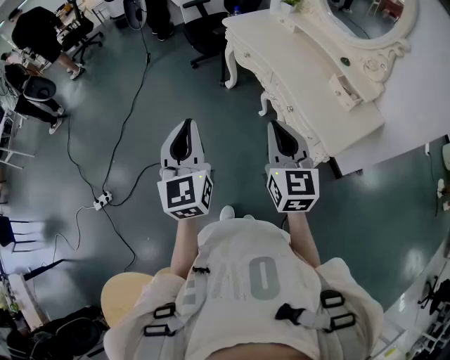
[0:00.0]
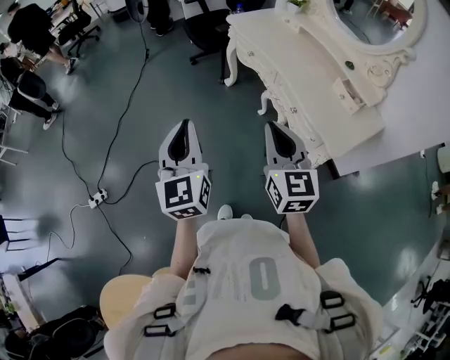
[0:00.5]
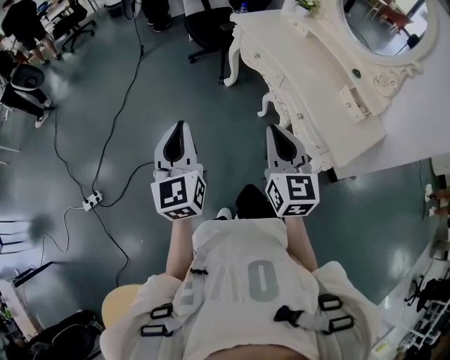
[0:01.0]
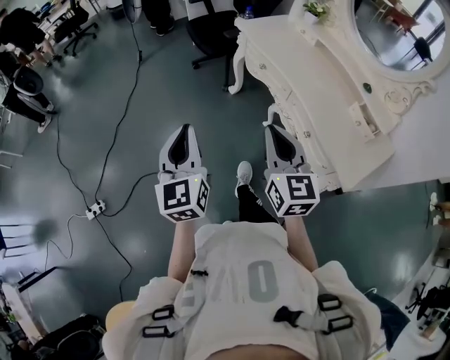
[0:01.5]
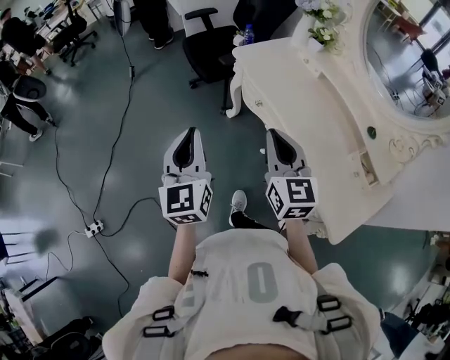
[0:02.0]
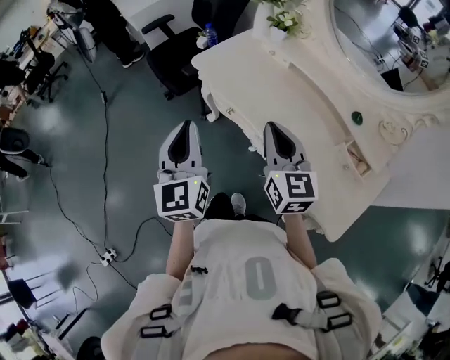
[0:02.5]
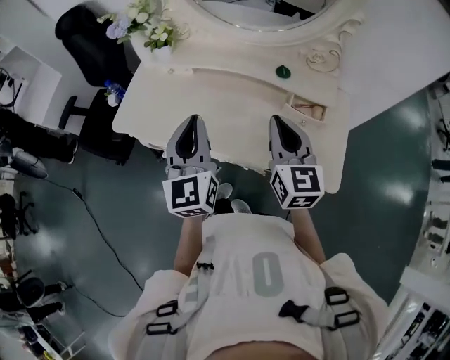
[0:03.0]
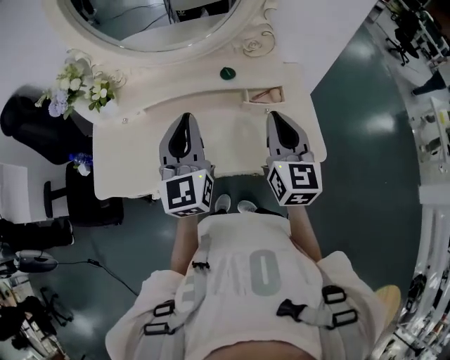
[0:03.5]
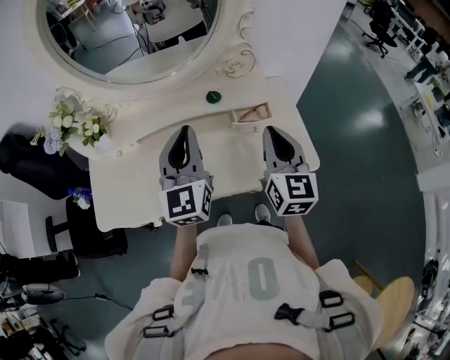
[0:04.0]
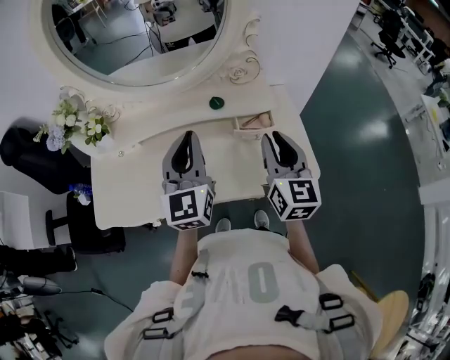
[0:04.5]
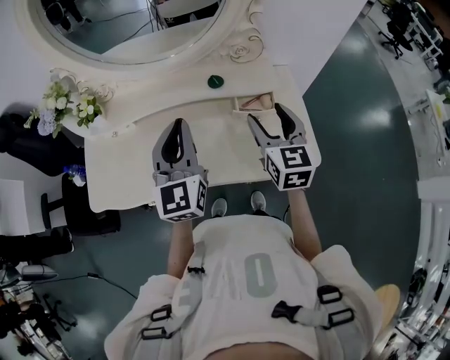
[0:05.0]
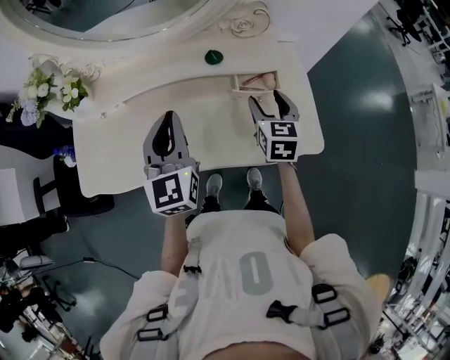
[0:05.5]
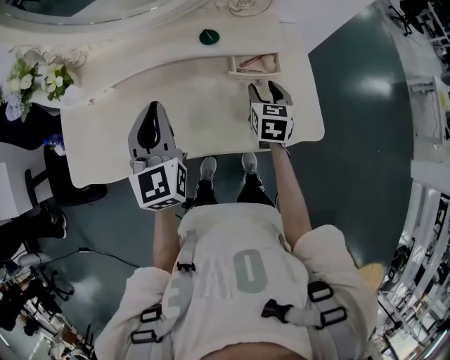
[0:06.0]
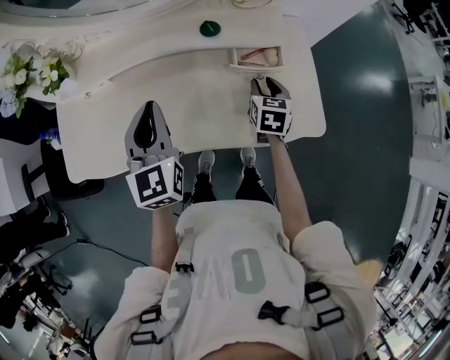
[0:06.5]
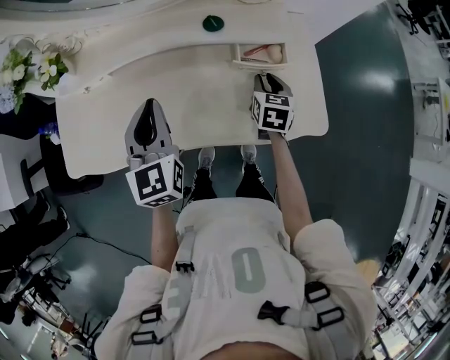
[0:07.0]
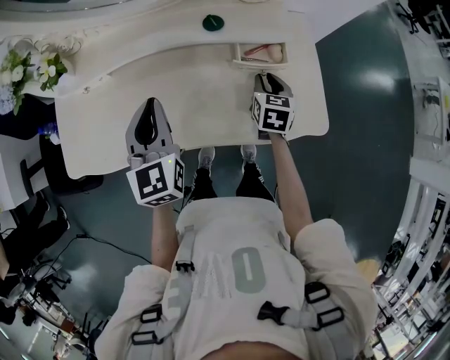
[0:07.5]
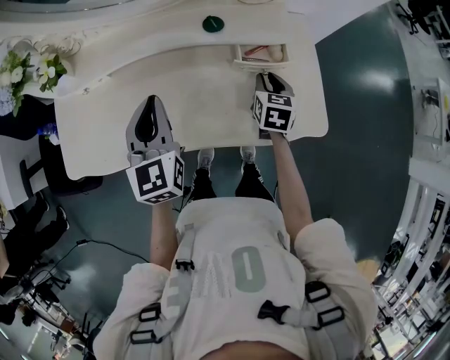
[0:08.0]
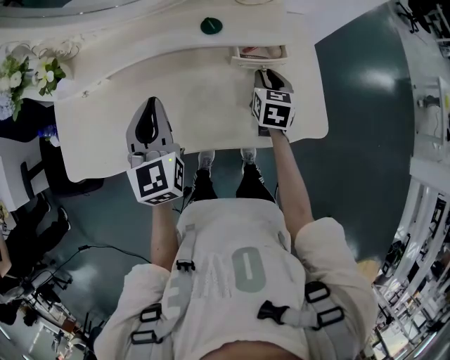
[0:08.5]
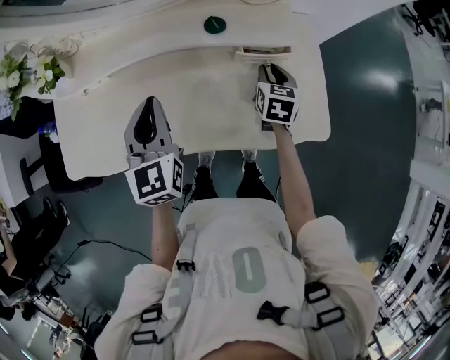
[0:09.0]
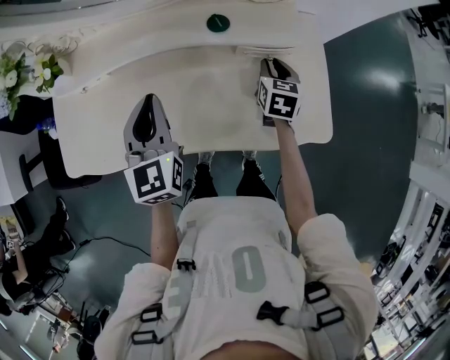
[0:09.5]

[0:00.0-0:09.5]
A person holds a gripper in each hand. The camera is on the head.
0:00.0 to 0:02.0: The grippers both shift forward by some 35 cm.
0:02.0 to 0:04.0: The left gripper moves some 50 cm, and rotates roughly 80 degrees, while the right gripper shifts by roughly 35 cm, and swivels roughly 80 degrees.
0:04.0 to 0:05.5: The left gripper moves downward, roughly 5 cm. The right gripper travels downward and forward by approximately 20 cm, turns by roughly 20 degrees, and opens its fingers.
0:05.5 to 0:07.5: The right gripper heads downward, covering some 10 cm, and closes up, while the left gripper moves downward, about 5 cm.
0:07.5 to 0:09.5: The right gripper shifts about 5 cm forward.

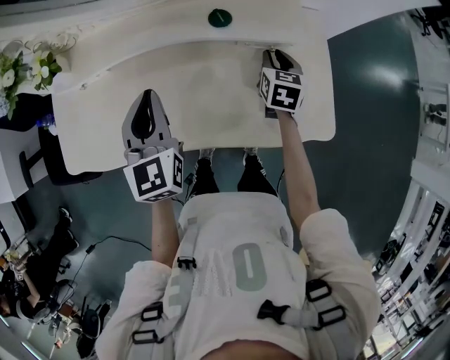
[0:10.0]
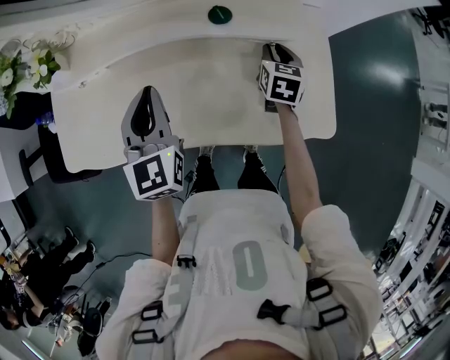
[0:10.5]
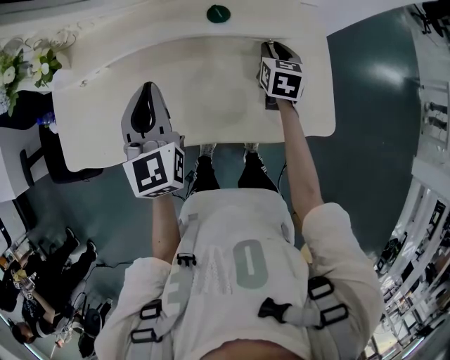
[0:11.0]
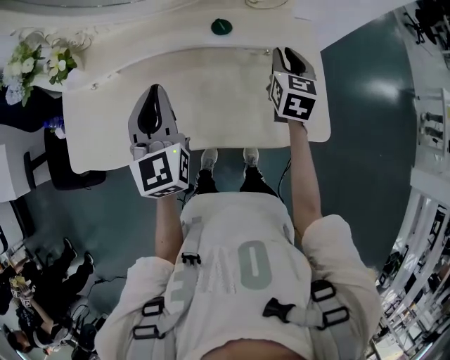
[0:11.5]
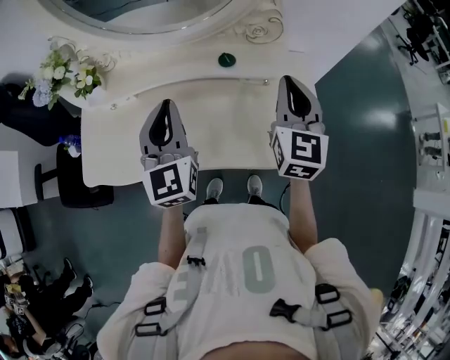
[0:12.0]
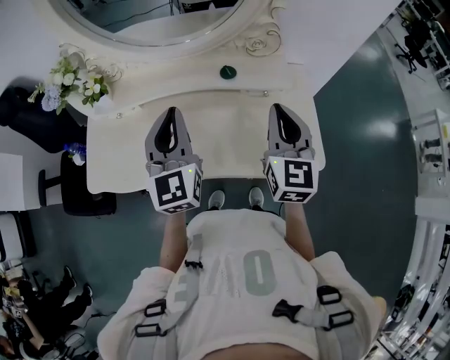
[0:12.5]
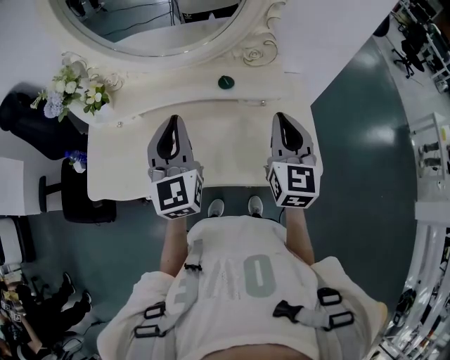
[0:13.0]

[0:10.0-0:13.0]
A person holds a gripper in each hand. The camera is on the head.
0:10.0 to 0:11.5: The right gripper heads upward, covering about 10 cm.
0:11.5 to 0:13.0: The left gripper travels upward by about 10 cm. The right gripper shifts about 20 cm upward and backward, and rotates approximately 20 degrees.

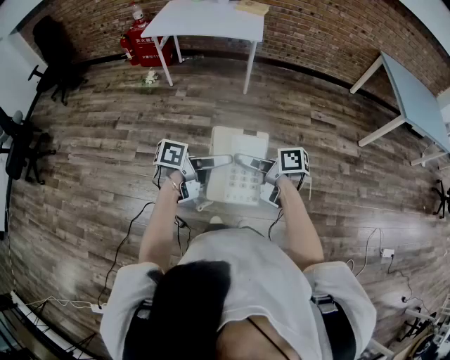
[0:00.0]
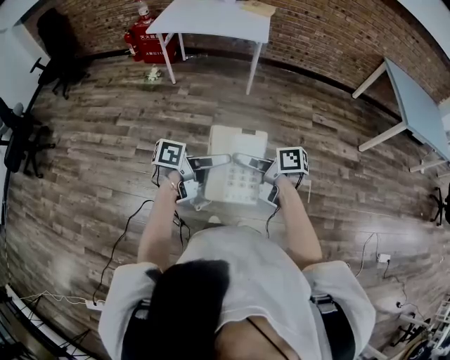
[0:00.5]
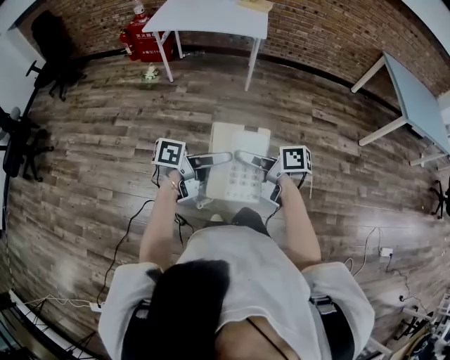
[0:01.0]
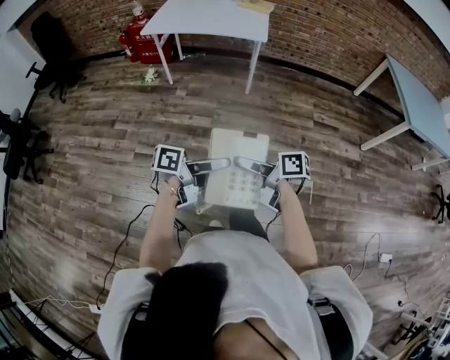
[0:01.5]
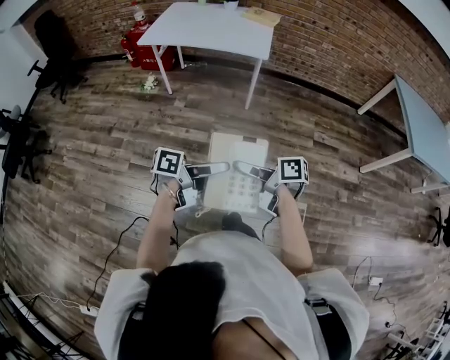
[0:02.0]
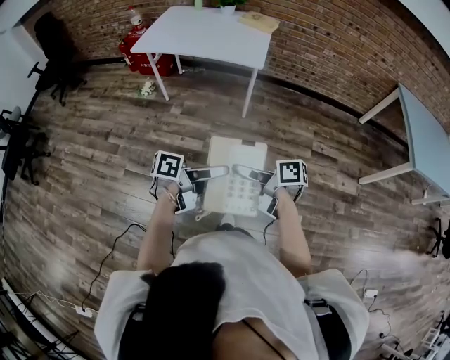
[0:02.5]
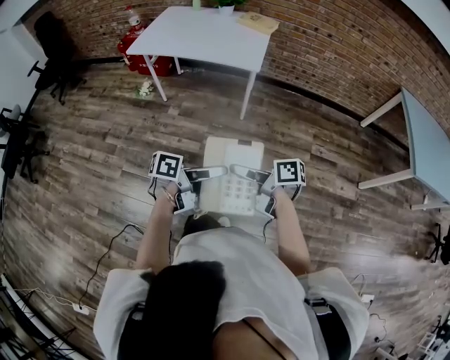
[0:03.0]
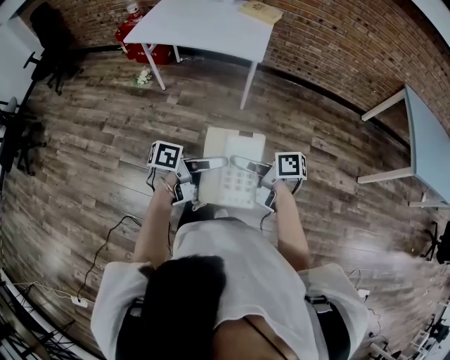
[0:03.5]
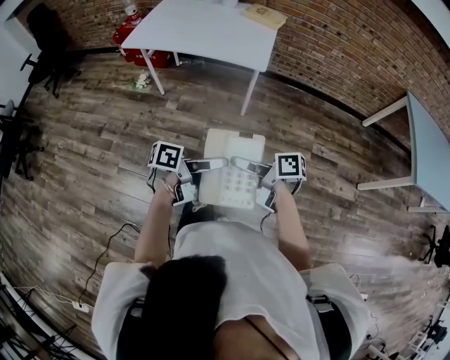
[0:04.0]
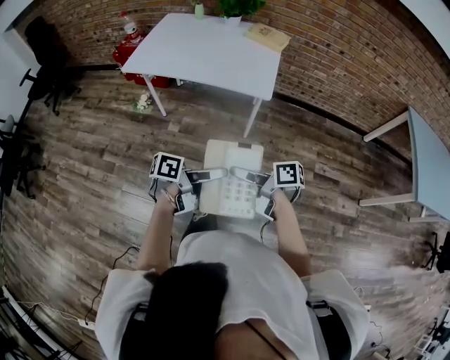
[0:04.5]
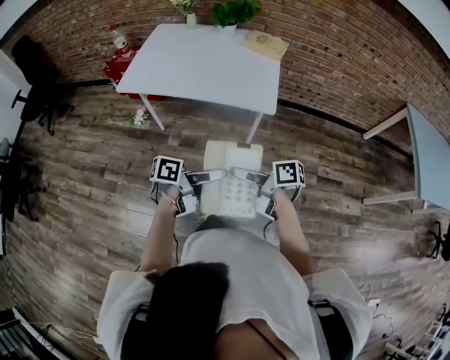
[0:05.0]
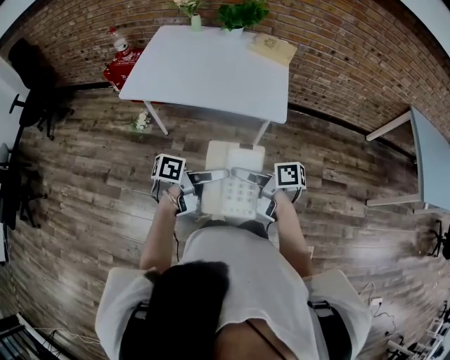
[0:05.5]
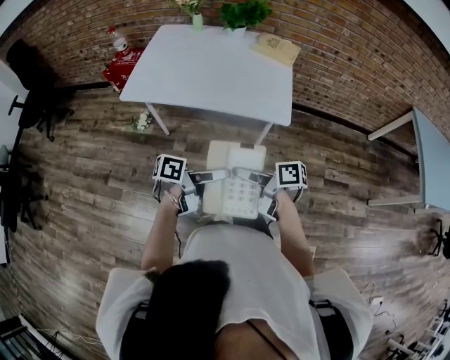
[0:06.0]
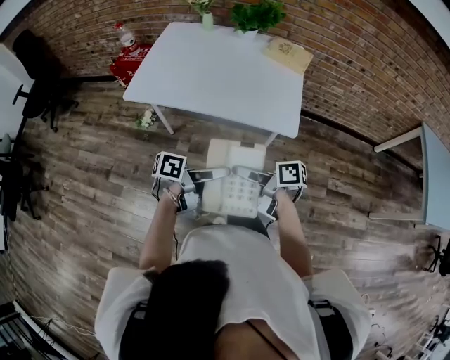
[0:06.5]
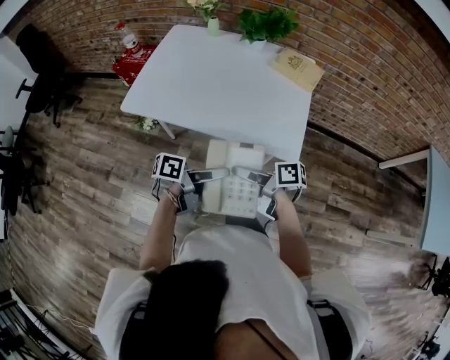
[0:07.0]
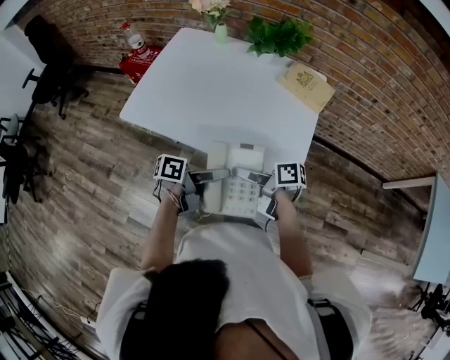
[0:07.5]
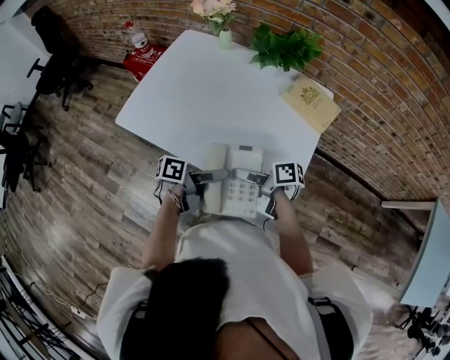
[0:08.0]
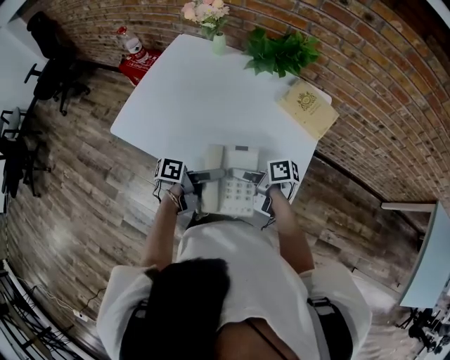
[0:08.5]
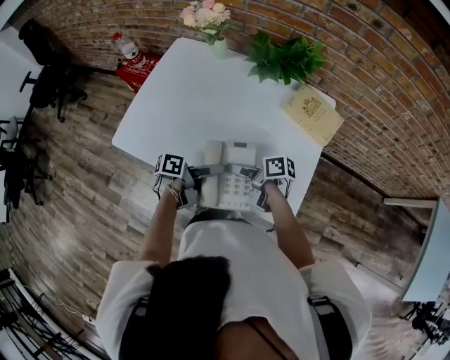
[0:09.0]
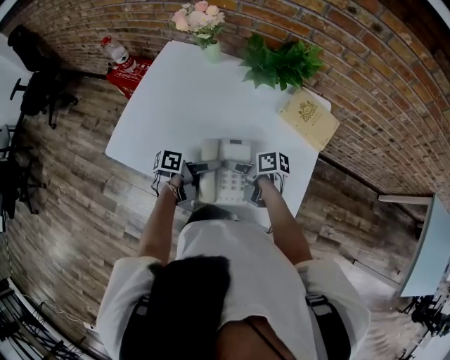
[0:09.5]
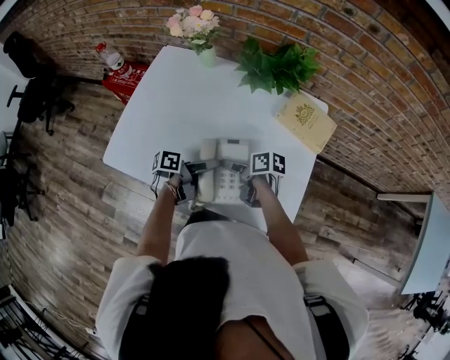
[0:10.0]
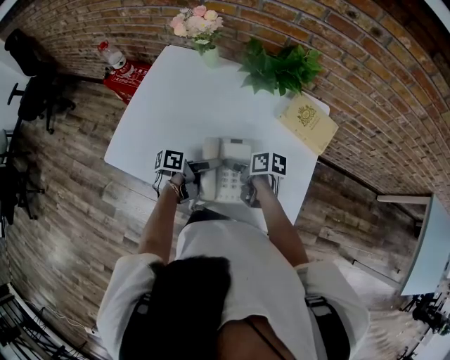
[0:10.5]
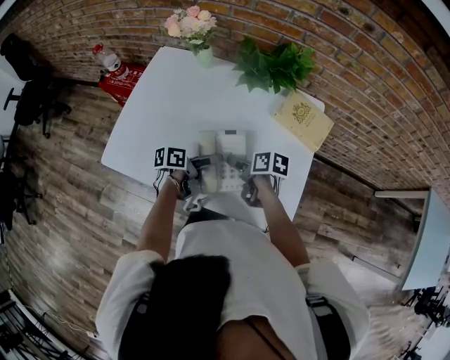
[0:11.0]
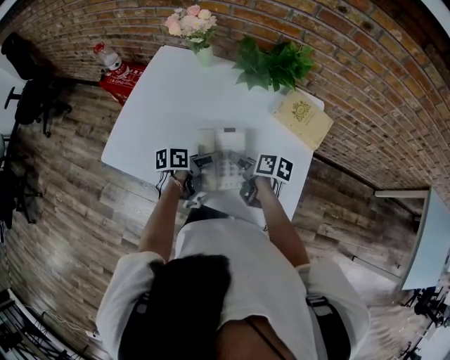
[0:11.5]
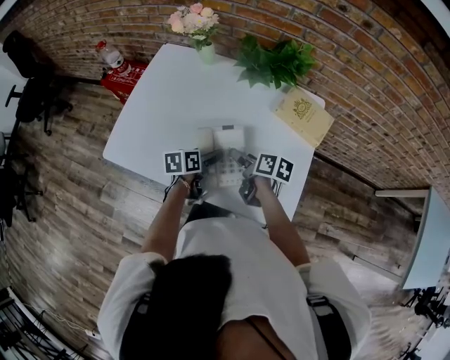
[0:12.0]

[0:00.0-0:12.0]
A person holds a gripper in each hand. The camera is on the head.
0:00.0 to 0:02.0: The left gripper ends up about 15 cm from where it was. Meanwhile the right gripper ends up some 15 cm from where it was.
0:02.0 to 0:04.0: The right gripper shifts by approximately 20 cm; the left gripper moves some 20 cm.
0:04.0 to 0:06.0: The left gripper shifts by some 30 cm. Meanwhile the right gripper ends up some 30 cm from where it was.
0:06.0 to 0:08.0: The right gripper moves roughly 30 cm. Meanwhile the left gripper moves about 30 cm.
0:08.0 to 0:10.0: The left gripper changes place by roughly 15 cm. The right gripper ends up about 15 cm from where it was, and changes its angle by about 20 degrees.
0:10.0 to 0:12.0: The left gripper swivels about 40 degrees, while the right gripper moves about 5 cm.

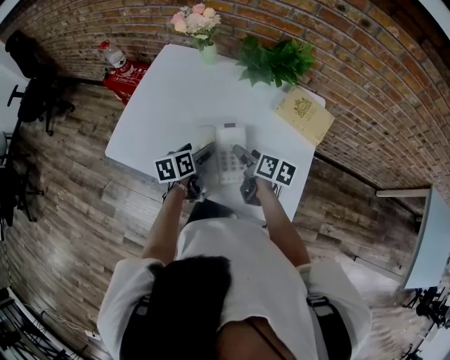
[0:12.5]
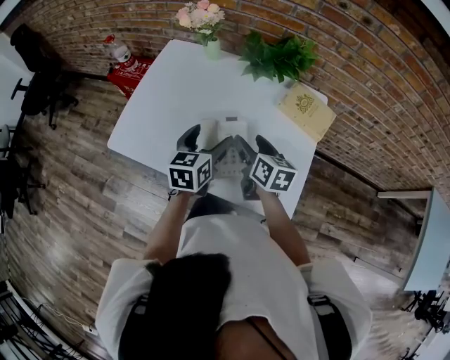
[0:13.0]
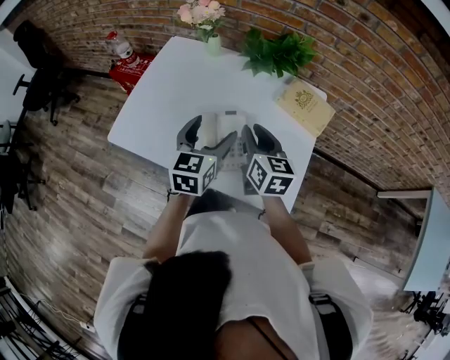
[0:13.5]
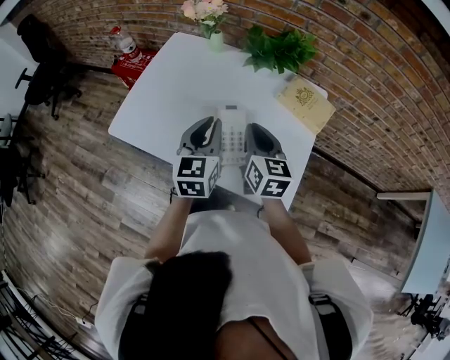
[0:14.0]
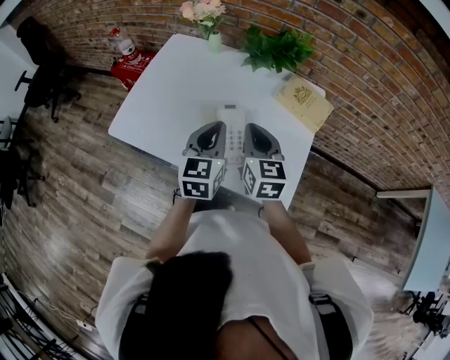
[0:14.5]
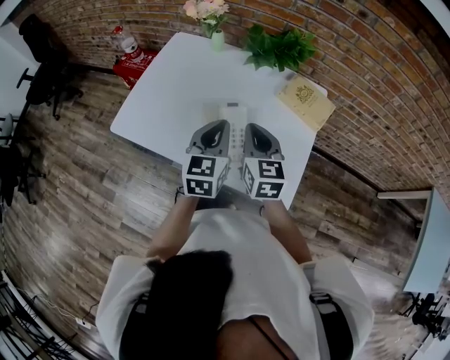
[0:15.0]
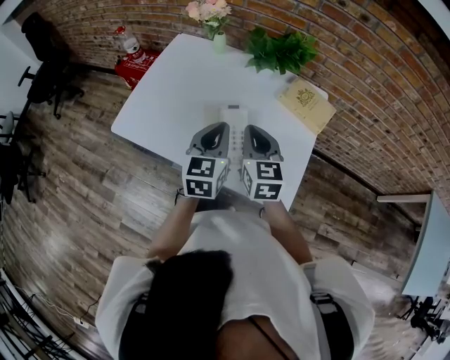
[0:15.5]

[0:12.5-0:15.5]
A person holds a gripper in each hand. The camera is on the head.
0:12.5 to 0:14.0: Both grippers move upward, roughly 15 cm. The right gripper swivels some 40 degrees, and closes its fingers; the left gripper swivels about 40 degrees, and closes up.
0:14.0 to 0:15.5: The grippers stay close to where they were, moving slightly.
